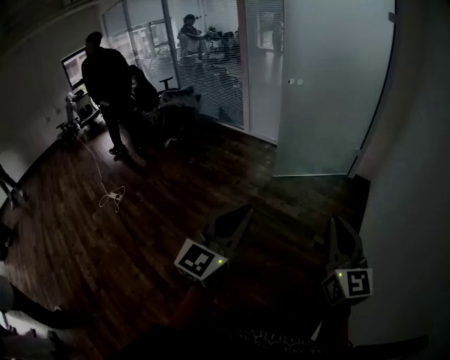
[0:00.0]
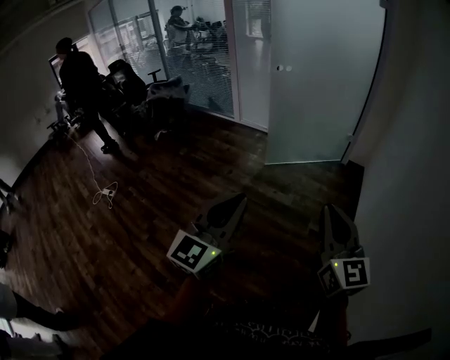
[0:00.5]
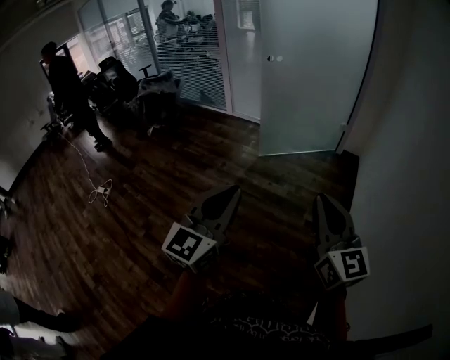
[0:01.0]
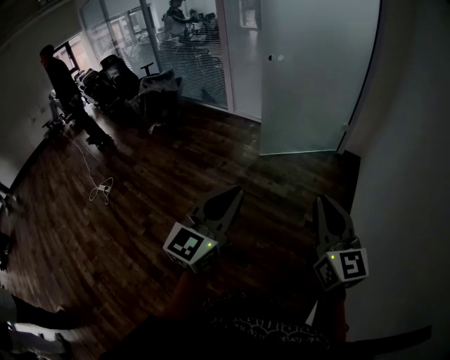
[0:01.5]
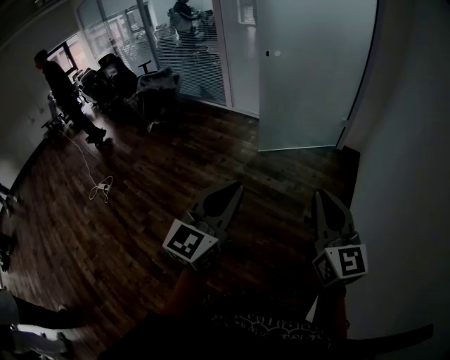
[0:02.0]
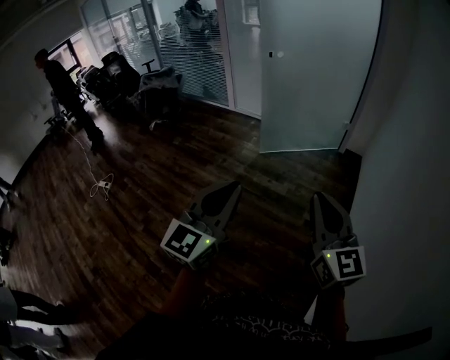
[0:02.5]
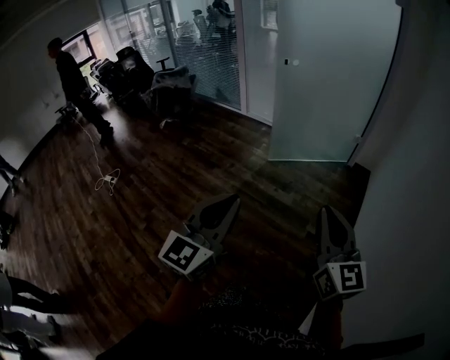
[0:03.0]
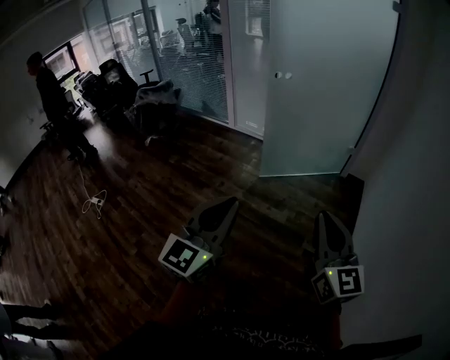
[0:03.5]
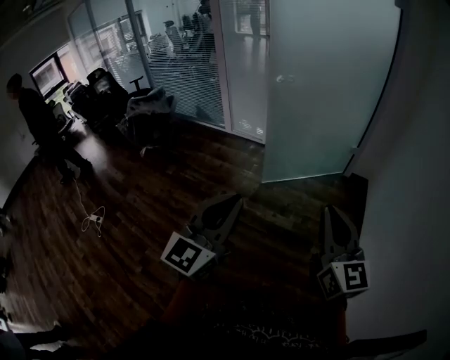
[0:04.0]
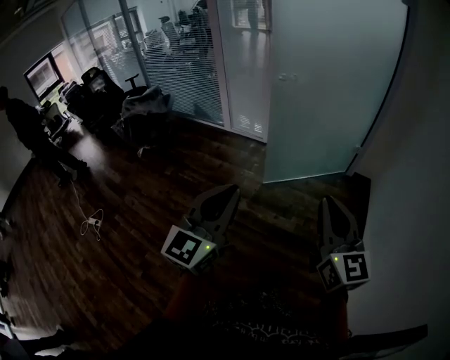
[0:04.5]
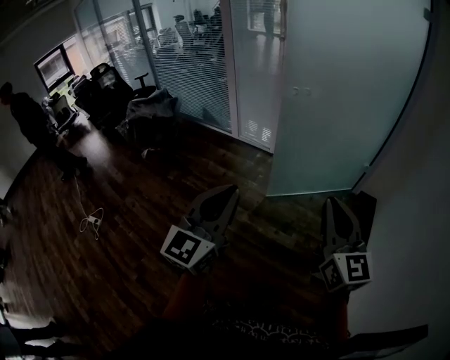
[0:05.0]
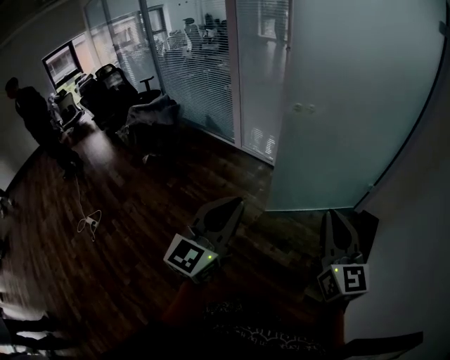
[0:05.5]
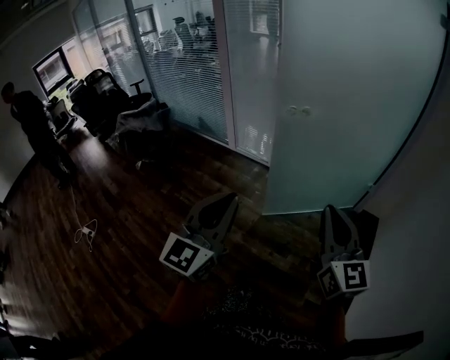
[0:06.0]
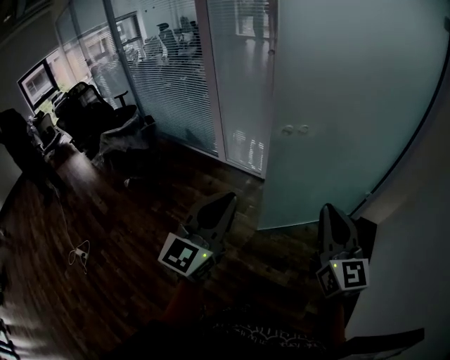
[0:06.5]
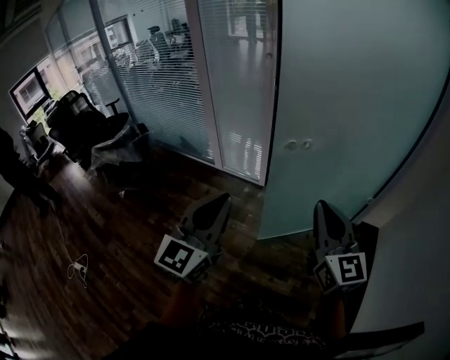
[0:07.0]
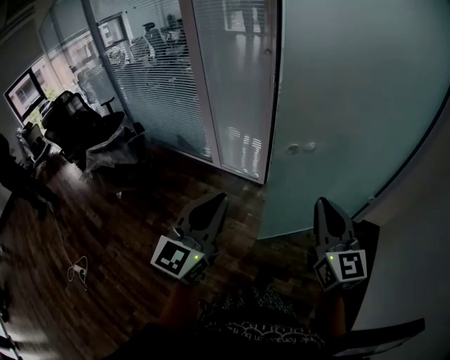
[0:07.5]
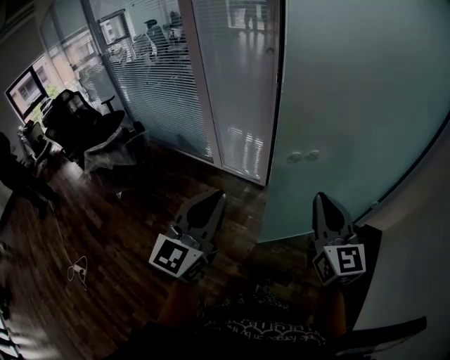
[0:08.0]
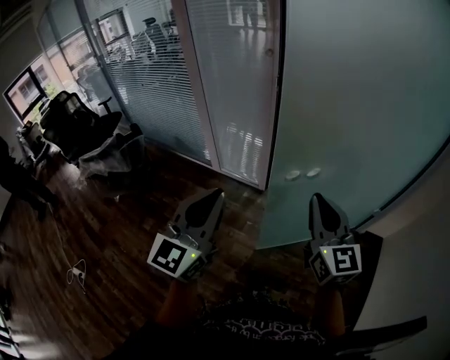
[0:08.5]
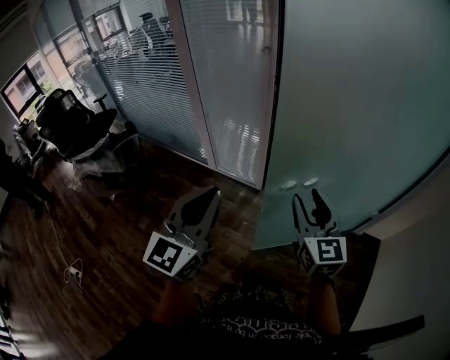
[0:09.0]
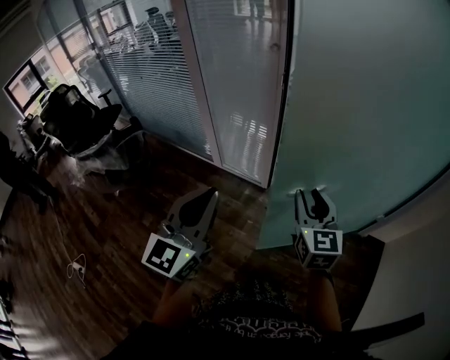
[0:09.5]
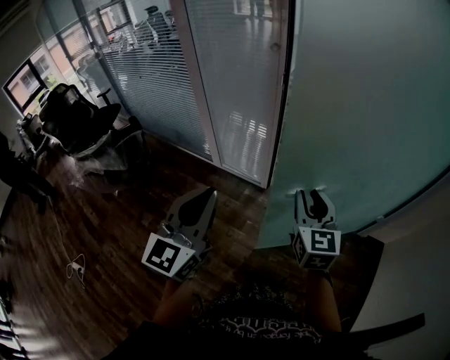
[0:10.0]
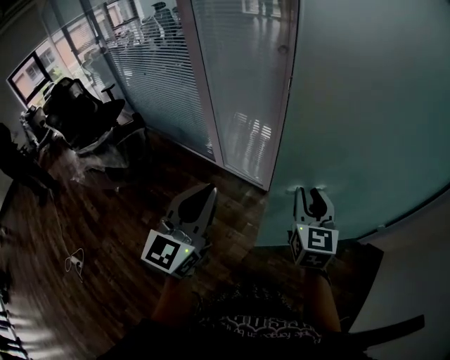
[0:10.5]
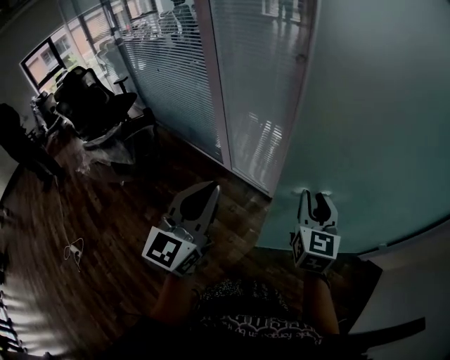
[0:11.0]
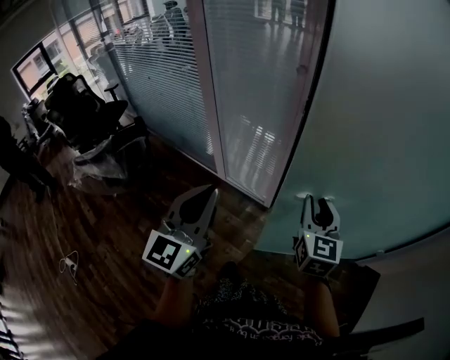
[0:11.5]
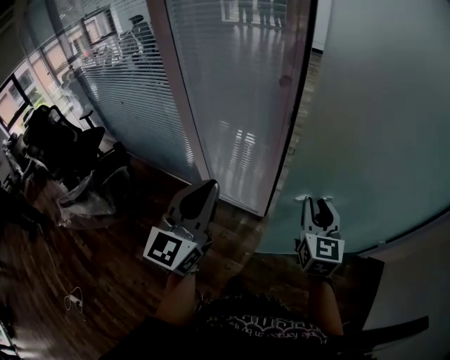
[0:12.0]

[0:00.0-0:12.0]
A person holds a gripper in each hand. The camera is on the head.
0:00.0 to 0:02.0: The left gripper changes place by approximately 5 cm.
0:02.0 to 0:04.0: The right gripper goes roughly 25 cm forward. The left gripper is displaced forward and to the left by about 25 cm.
0:04.0 to 0:06.0: The two grippers go approximately 35 cm forward.
0:06.0 to 0:08.0: Both grippers travel together forward, roughly 30 cm.
0:08.0 to 0:10.0: The right gripper goes roughly 20 cm forward and downward, and opens its fingers; the left gripper shifts roughly 15 cm forward.
0:10.0 to 0:12.0: The grippers both shift forward by approximately 20 cm.

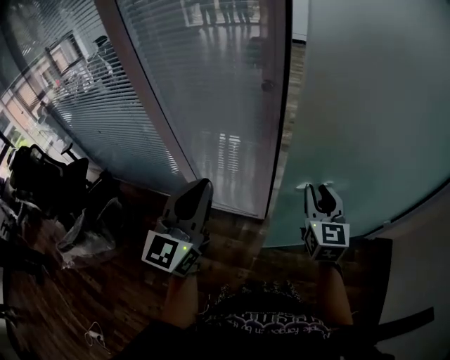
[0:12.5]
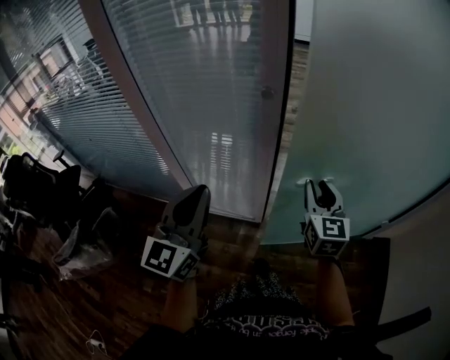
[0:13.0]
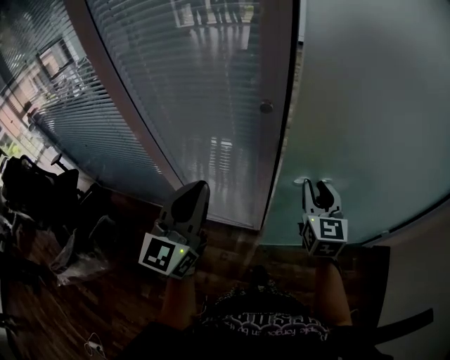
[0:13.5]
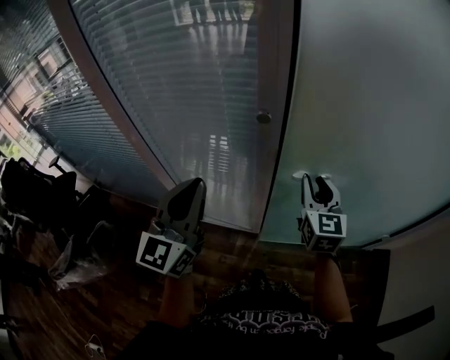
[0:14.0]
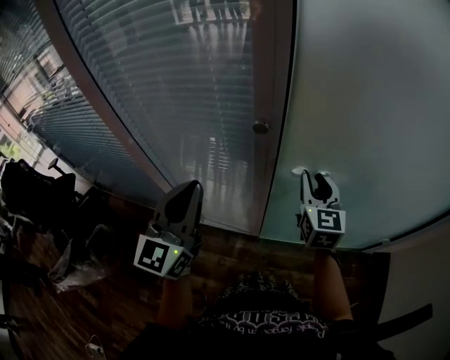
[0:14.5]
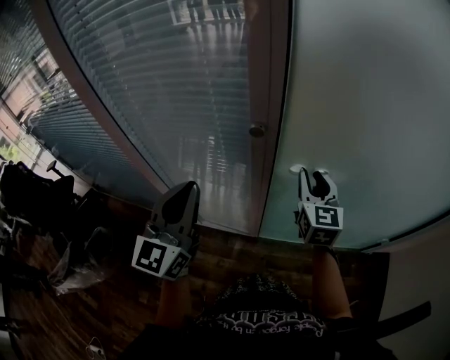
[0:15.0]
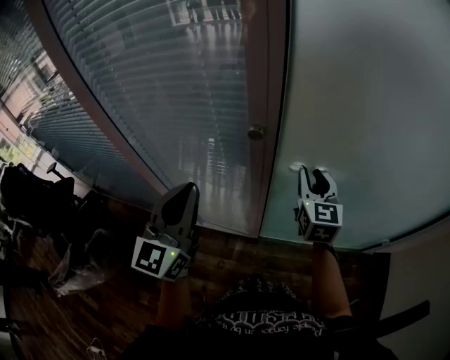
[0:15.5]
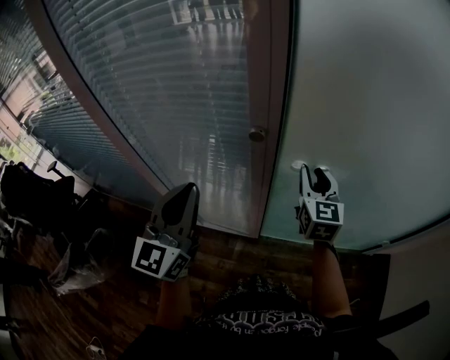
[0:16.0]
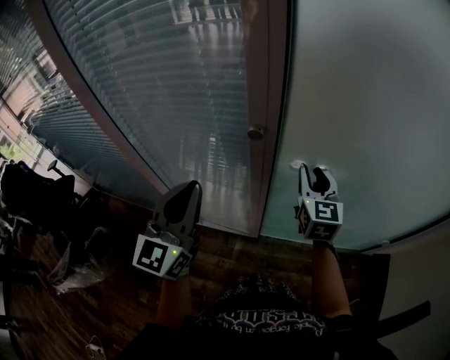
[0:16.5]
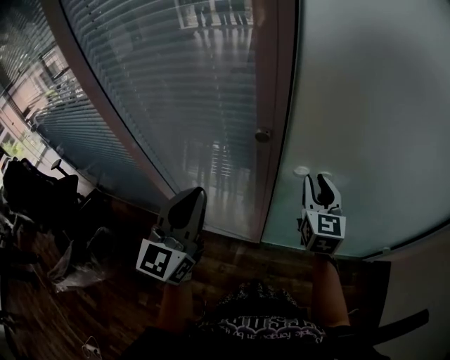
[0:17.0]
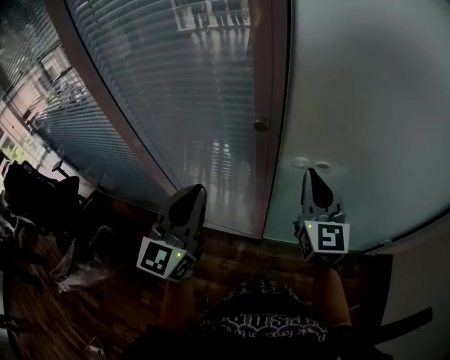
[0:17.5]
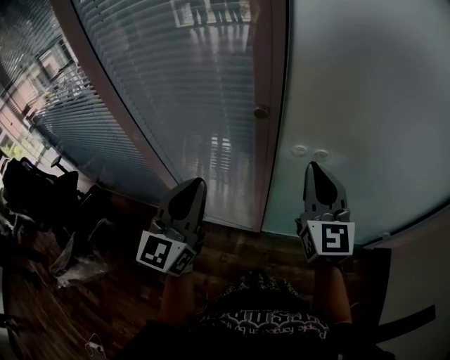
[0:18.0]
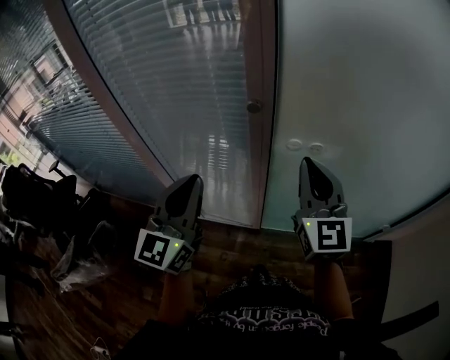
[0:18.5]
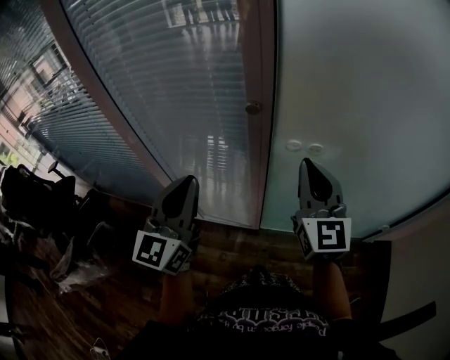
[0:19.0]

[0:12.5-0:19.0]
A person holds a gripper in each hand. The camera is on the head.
0:12.5 to 0:14.5: The grippers both shift forward by some 15 cm.
0:14.5 to 0:17.0: The grippers stay close to where they were, moving slightly.
0:17.0 to 0:19.0: The right gripper travels upward and backward by some 15 cm, and closes up.

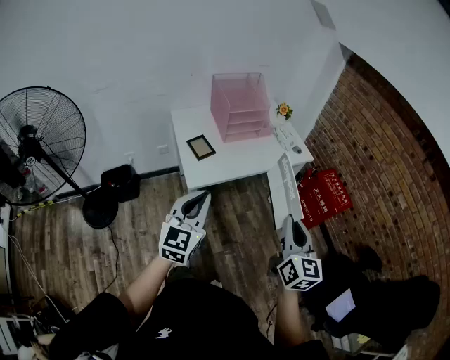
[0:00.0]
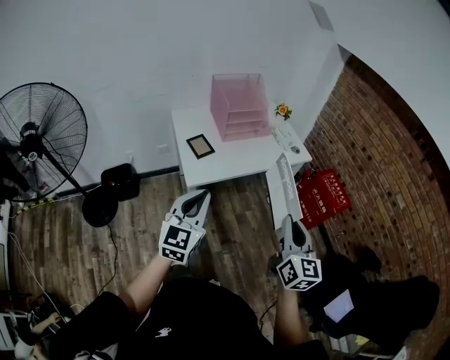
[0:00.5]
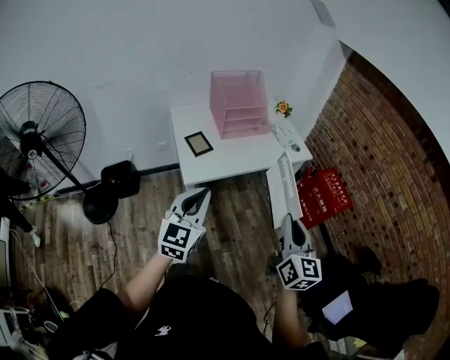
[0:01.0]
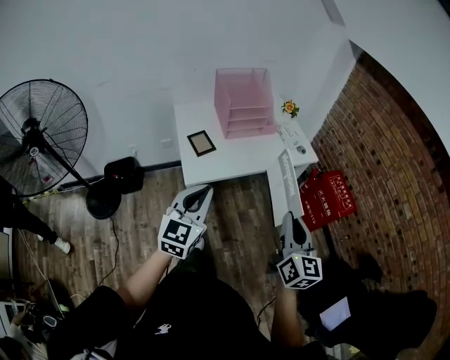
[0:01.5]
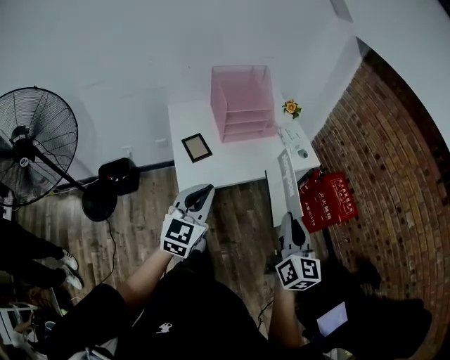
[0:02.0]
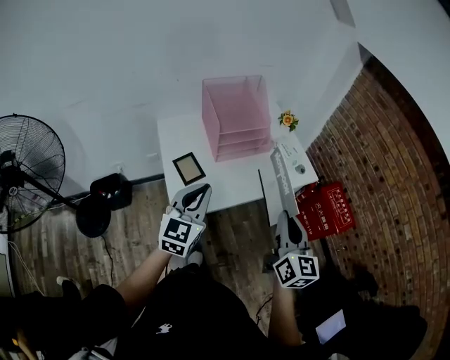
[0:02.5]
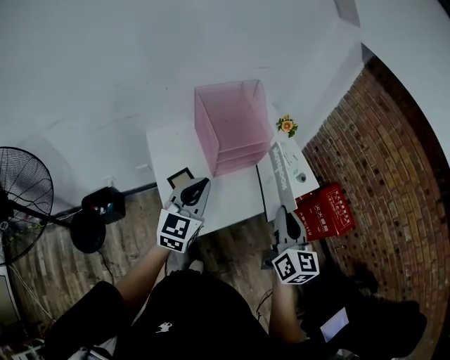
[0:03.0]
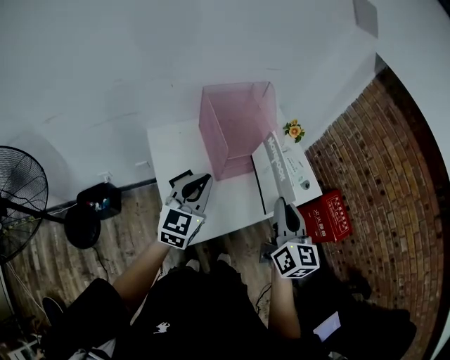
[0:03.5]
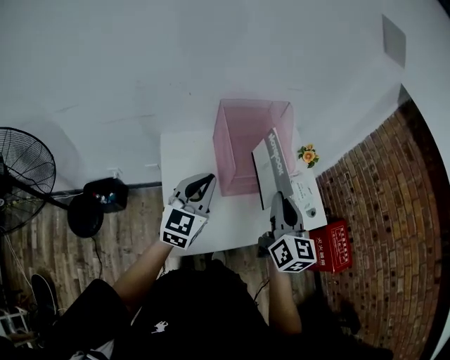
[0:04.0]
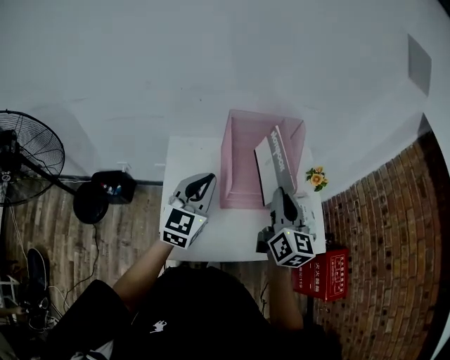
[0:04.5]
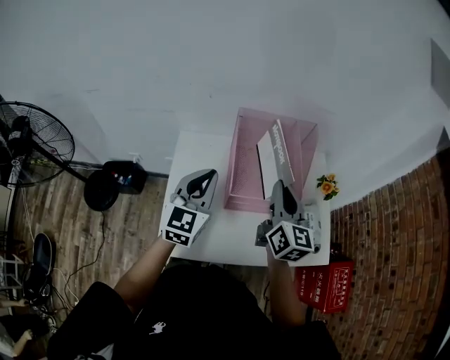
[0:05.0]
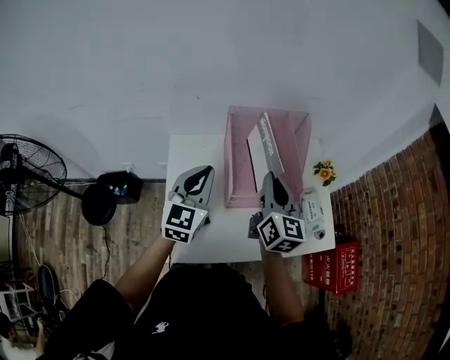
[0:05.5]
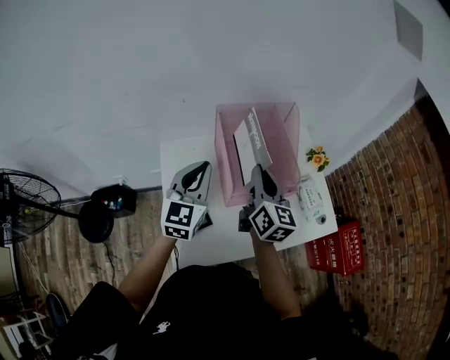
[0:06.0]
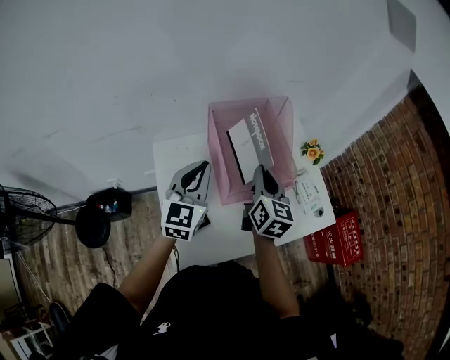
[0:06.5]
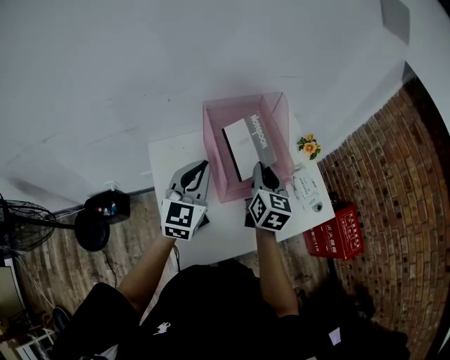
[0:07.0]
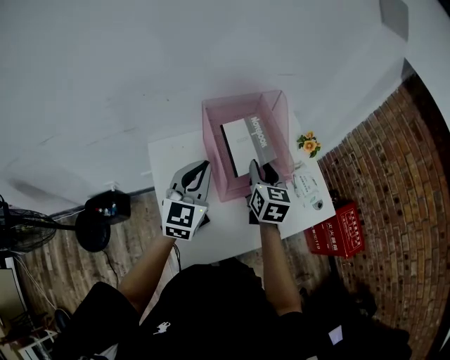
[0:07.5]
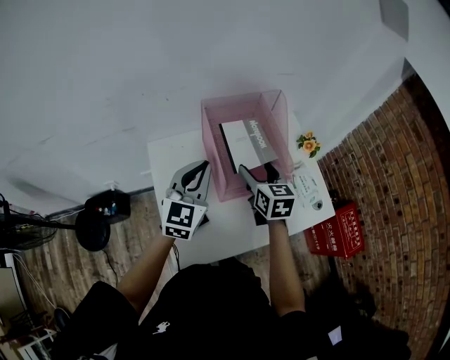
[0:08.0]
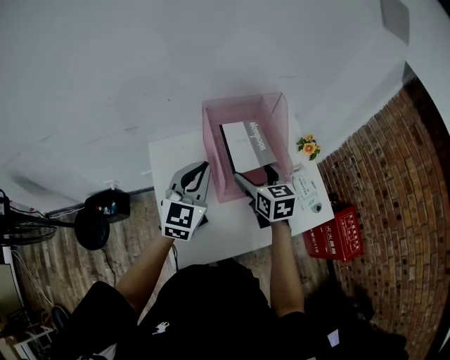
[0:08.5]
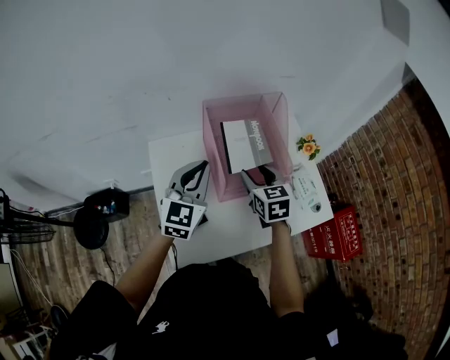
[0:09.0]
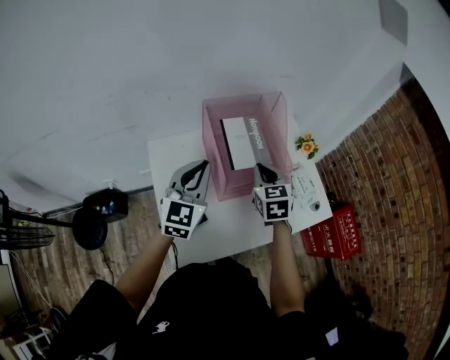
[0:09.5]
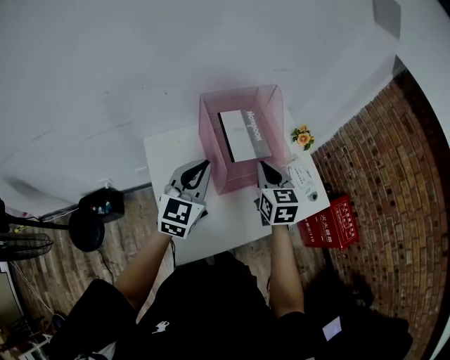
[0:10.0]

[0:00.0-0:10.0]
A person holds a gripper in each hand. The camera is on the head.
0:00.0 to 0:02.0: Both grippers move forward, roughly 10 cm.
0:02.0 to 0:04.0: The right gripper heads forward and to the left, covering some 40 cm; the left gripper moves forward, approximately 30 cm.
0:04.0 to 0:06.0: Both grippers move forward, about 10 cm.
0:06.0 to 0:08.0: The right gripper heads downward, covering approximately 5 cm, changes its angle by about 30 degrees, and opens its fingers.
0:08.0 to 0:10.0: The right gripper closes its fingers.
